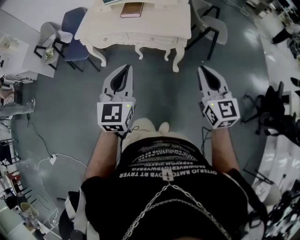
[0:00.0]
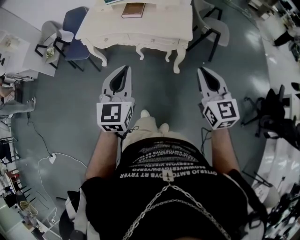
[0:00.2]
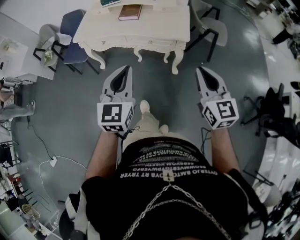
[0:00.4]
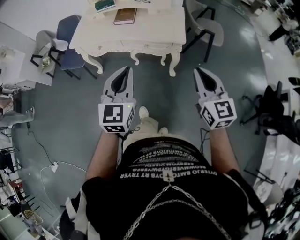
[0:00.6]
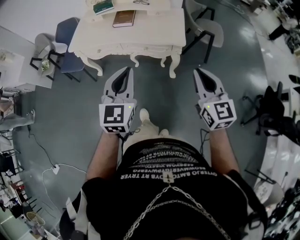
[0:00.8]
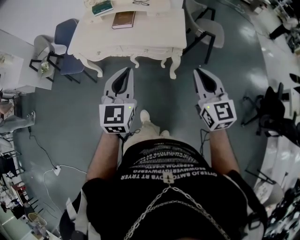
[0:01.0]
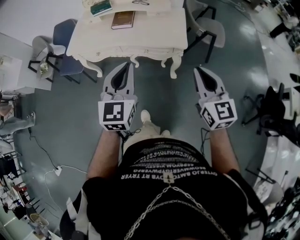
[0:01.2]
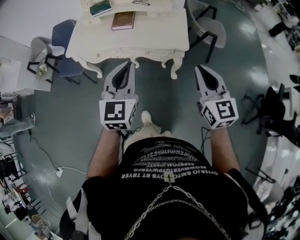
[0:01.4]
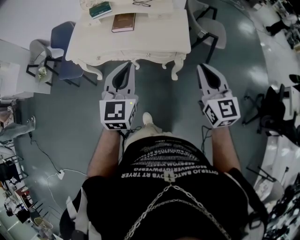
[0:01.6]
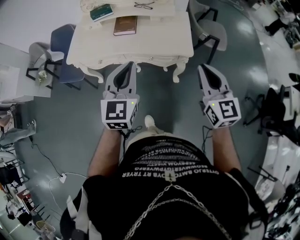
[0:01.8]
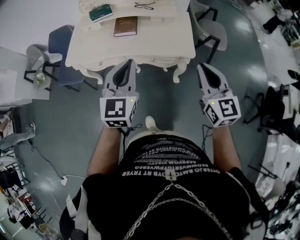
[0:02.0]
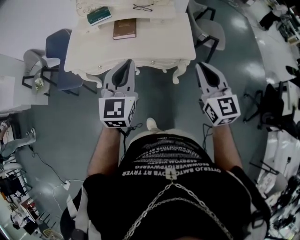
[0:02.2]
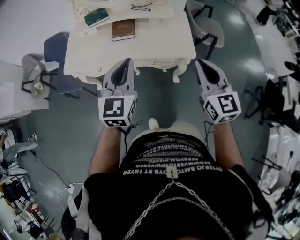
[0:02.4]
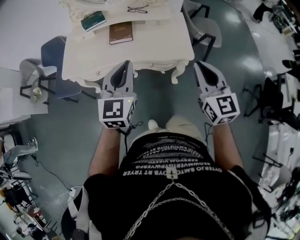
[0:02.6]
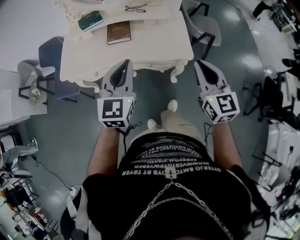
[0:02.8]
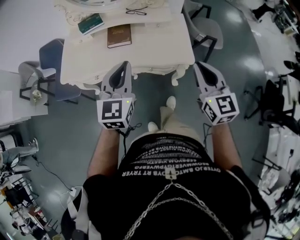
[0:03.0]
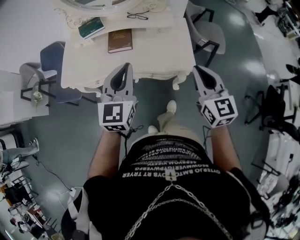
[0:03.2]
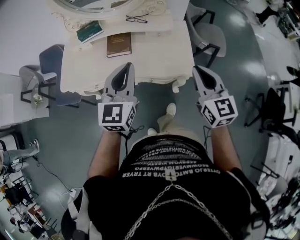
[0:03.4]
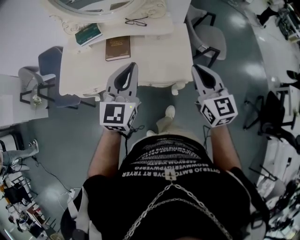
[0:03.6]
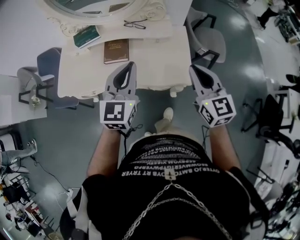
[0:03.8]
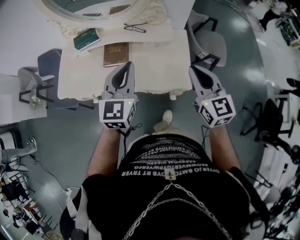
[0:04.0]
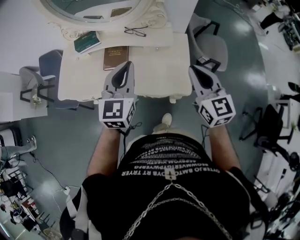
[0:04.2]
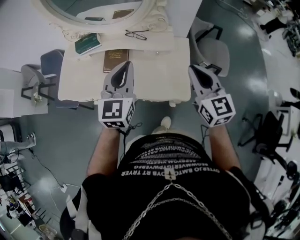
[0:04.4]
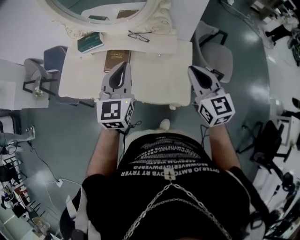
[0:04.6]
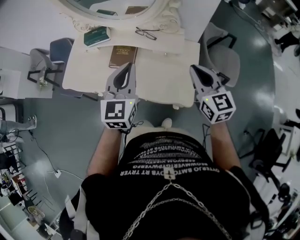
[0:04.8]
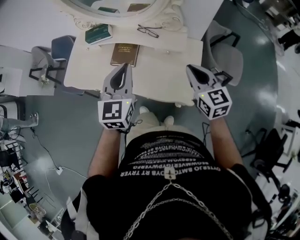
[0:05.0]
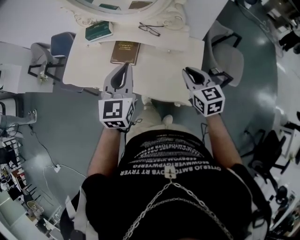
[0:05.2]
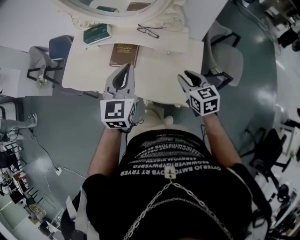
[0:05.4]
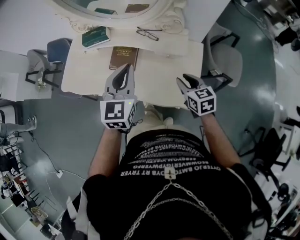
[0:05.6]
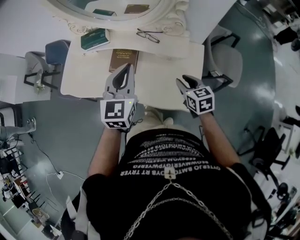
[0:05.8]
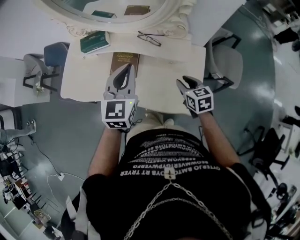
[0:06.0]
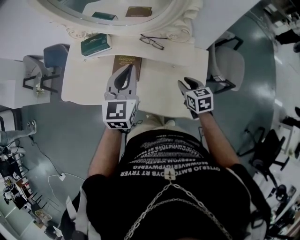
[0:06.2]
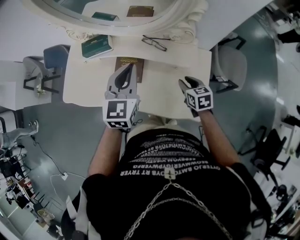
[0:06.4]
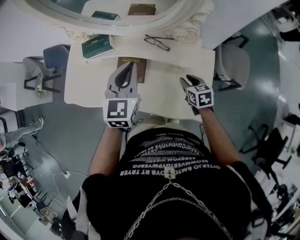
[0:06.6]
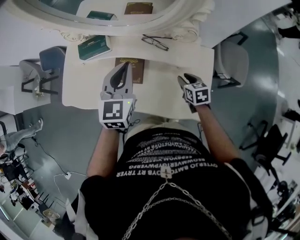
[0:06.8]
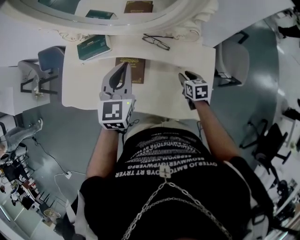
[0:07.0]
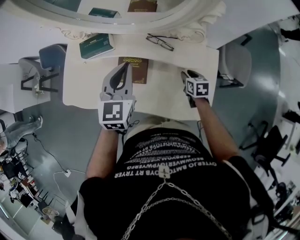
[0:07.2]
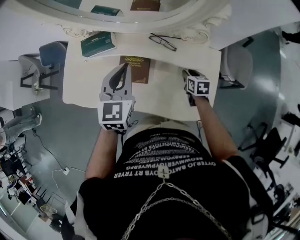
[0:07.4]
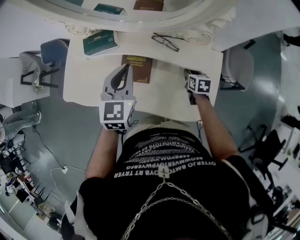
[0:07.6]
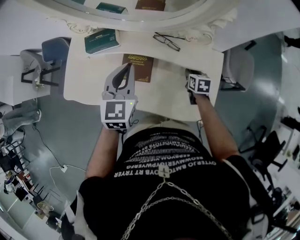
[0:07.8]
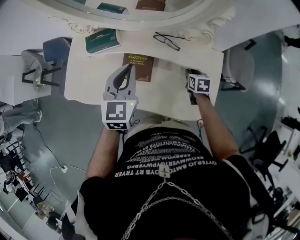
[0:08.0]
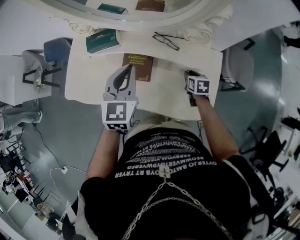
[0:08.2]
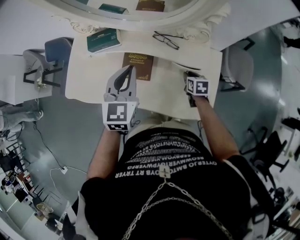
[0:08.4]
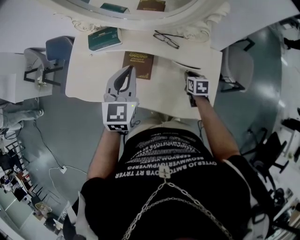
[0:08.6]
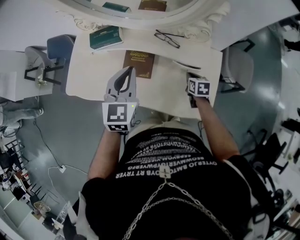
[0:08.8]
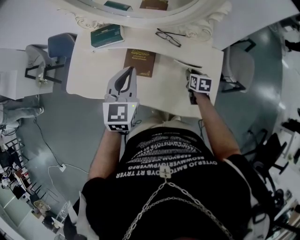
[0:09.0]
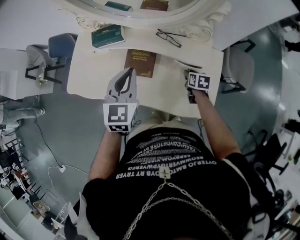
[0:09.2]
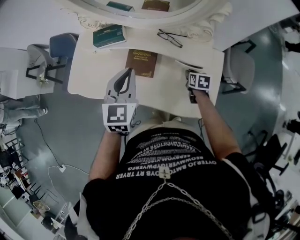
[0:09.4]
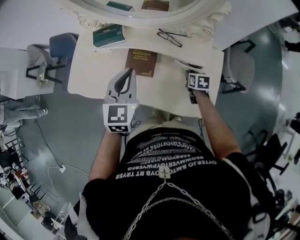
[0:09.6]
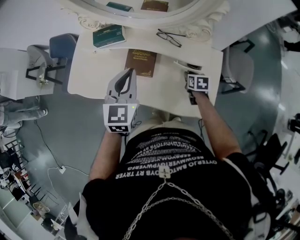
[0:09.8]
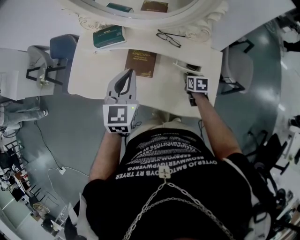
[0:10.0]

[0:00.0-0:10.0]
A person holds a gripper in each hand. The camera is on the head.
0:00.0 to 0:01.4: Both grippers move forward, about 15 cm.
0:01.4 to 0:02.8: Both grippers move forward and to the left, approximately 15 cm.
0:02.8 to 0:04.2: Both grippers travel together forward, about 20 cm.
0:04.2 to 0:05.8: The left gripper heads forward, covering roughly 10 cm; the right gripper goes approximately 25 cm downward and forward, rotates roughly 30 degrees, and opens its fingers.
0:05.8 to 0:07.2: The left gripper travels forward and to the left by roughly 15 cm. The right gripper travels downward and forward by some 20 cm, and turns by some 20 degrees.
0:07.2 to 0:08.6: There are only small adjustments of the grippers.
0:08.6 to 0:10.0: The grippers move only a little.

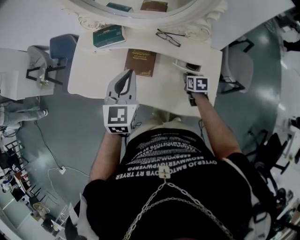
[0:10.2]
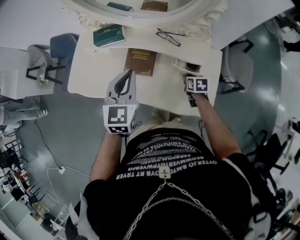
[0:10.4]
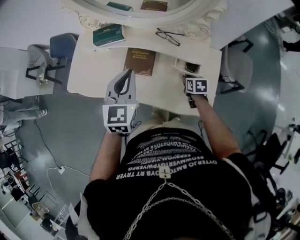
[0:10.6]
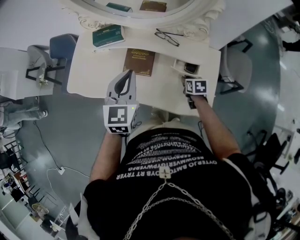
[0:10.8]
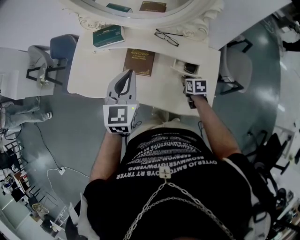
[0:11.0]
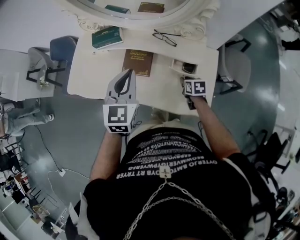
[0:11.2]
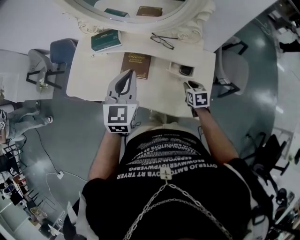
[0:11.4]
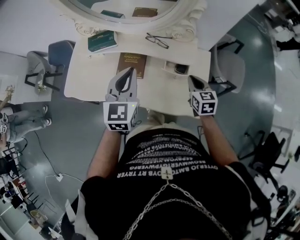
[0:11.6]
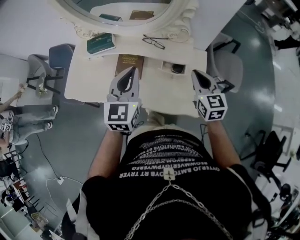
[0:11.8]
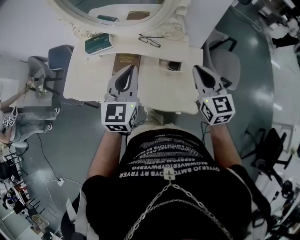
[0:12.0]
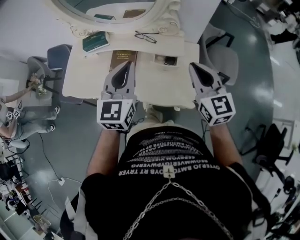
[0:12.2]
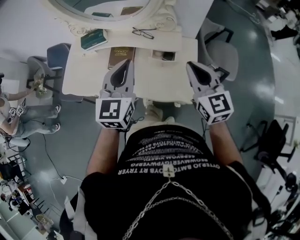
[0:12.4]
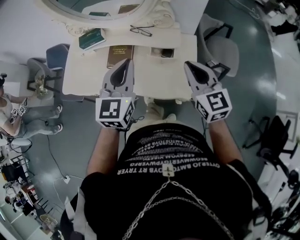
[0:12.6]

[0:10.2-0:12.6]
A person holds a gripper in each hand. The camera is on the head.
0:10.2 to 0:11.4: The right gripper shifts some 10 cm backward and upward.
0:11.4 to 0:12.6: The right gripper is displaced upward by about 30 cm, and tilts its fingers approximately 40 degrees upward. The left gripper shifts some 15 cm to the right, backward and upward.

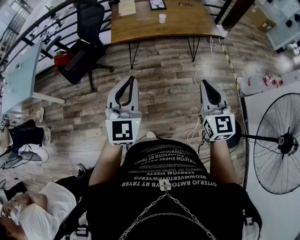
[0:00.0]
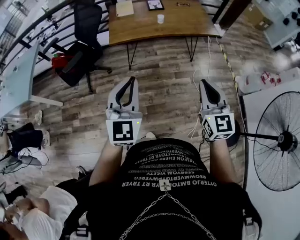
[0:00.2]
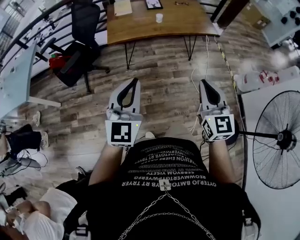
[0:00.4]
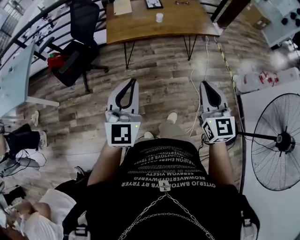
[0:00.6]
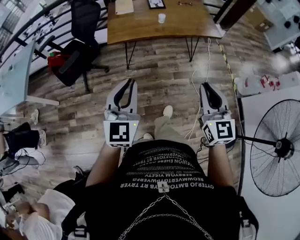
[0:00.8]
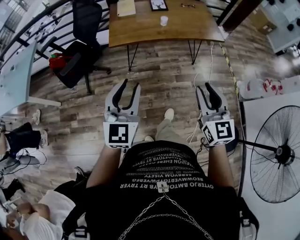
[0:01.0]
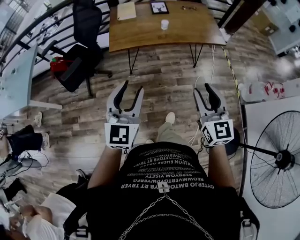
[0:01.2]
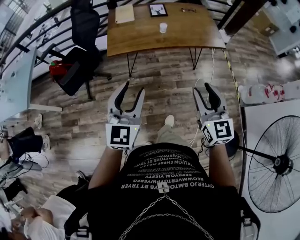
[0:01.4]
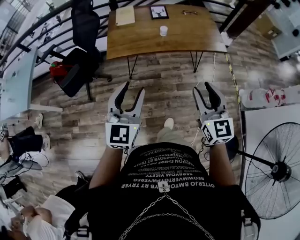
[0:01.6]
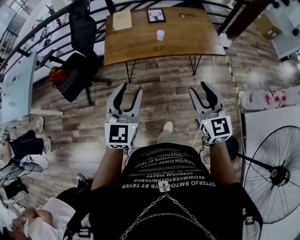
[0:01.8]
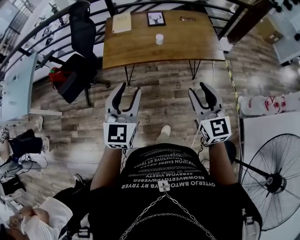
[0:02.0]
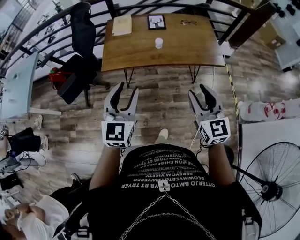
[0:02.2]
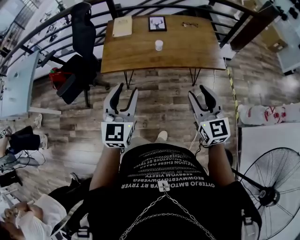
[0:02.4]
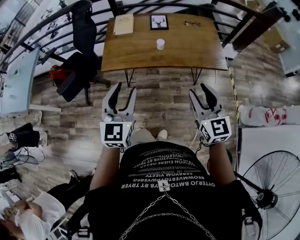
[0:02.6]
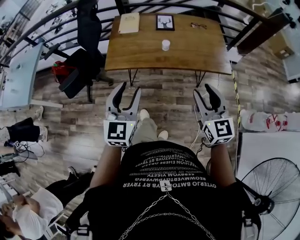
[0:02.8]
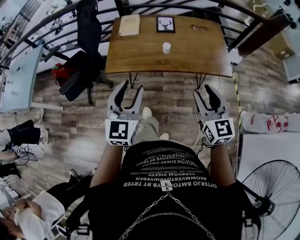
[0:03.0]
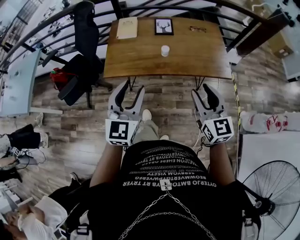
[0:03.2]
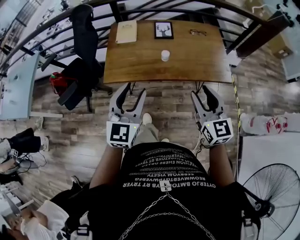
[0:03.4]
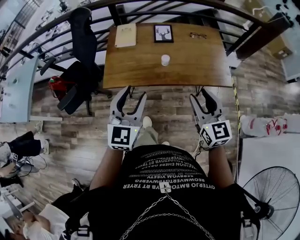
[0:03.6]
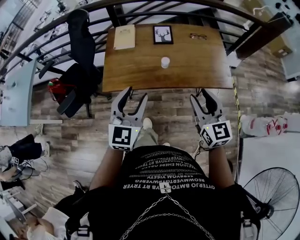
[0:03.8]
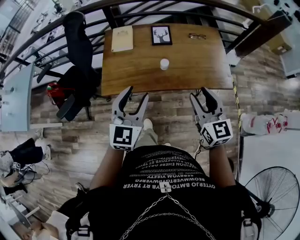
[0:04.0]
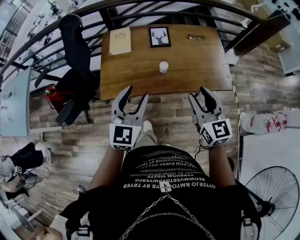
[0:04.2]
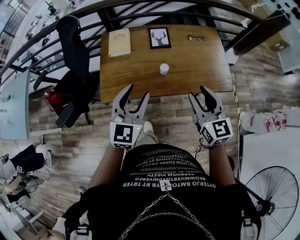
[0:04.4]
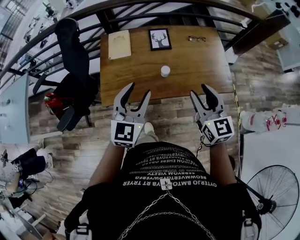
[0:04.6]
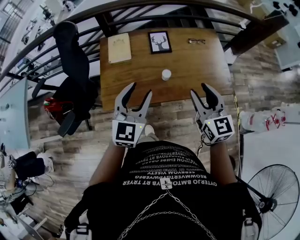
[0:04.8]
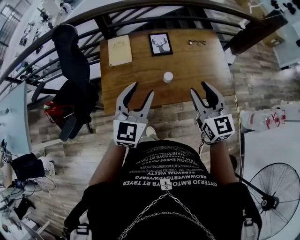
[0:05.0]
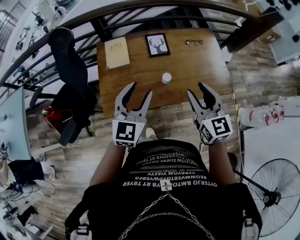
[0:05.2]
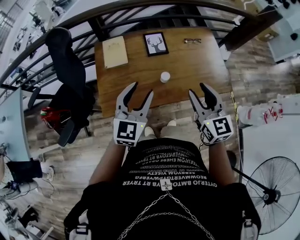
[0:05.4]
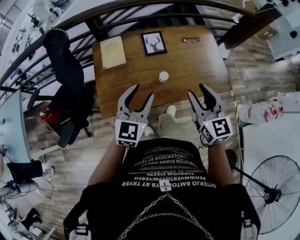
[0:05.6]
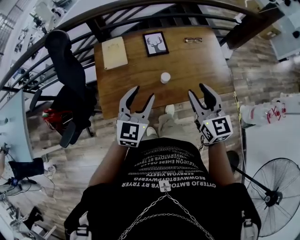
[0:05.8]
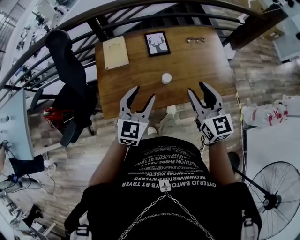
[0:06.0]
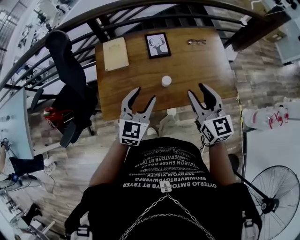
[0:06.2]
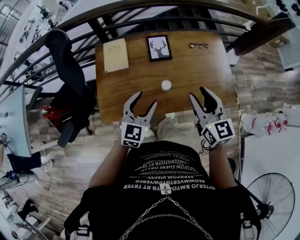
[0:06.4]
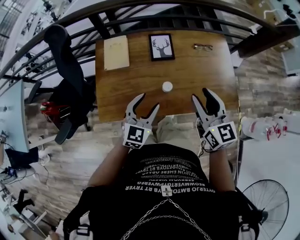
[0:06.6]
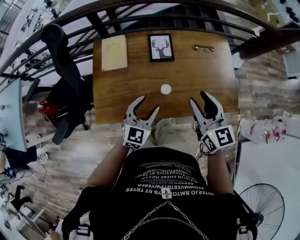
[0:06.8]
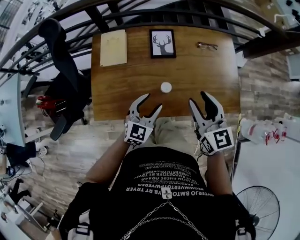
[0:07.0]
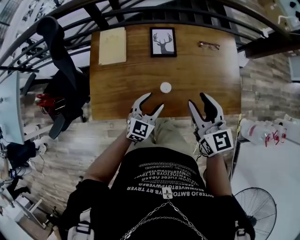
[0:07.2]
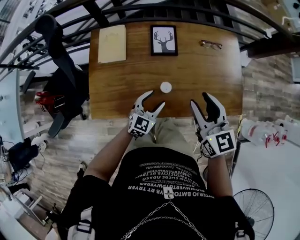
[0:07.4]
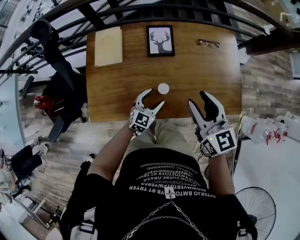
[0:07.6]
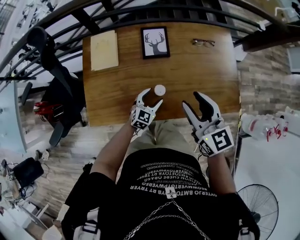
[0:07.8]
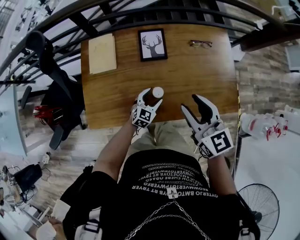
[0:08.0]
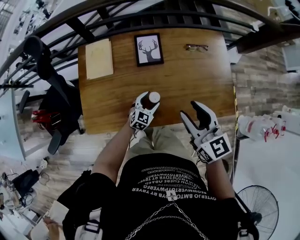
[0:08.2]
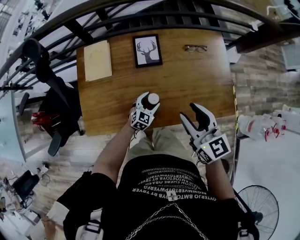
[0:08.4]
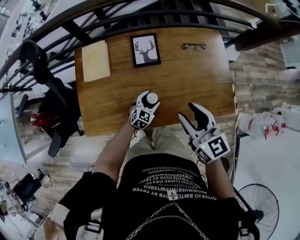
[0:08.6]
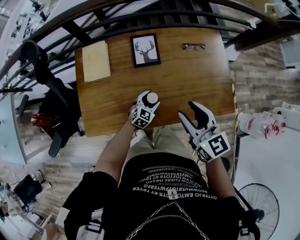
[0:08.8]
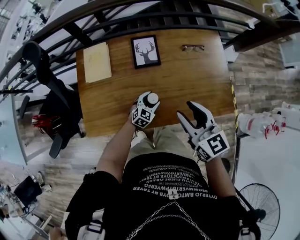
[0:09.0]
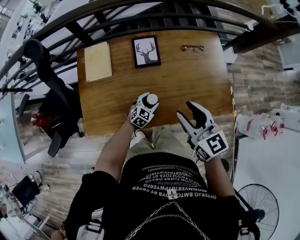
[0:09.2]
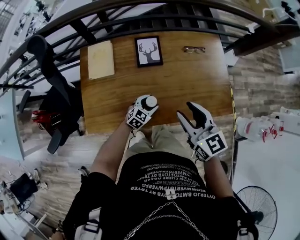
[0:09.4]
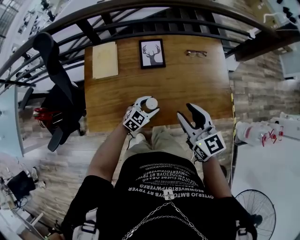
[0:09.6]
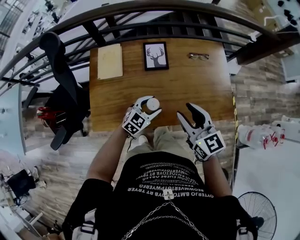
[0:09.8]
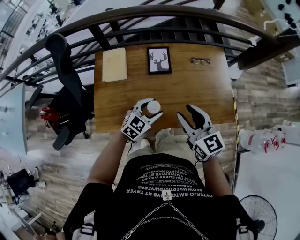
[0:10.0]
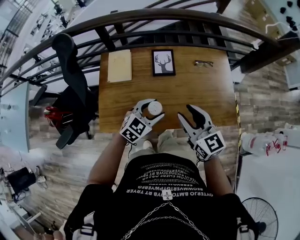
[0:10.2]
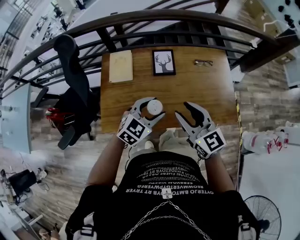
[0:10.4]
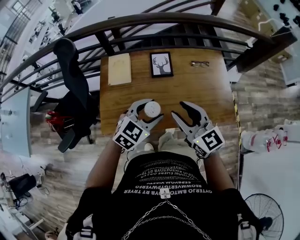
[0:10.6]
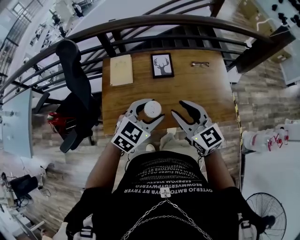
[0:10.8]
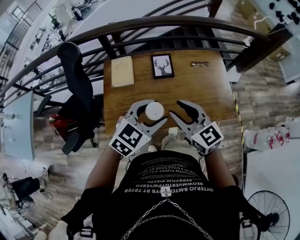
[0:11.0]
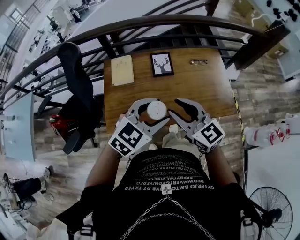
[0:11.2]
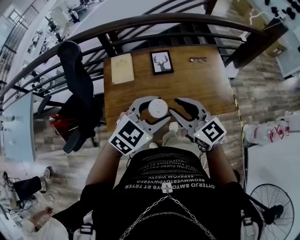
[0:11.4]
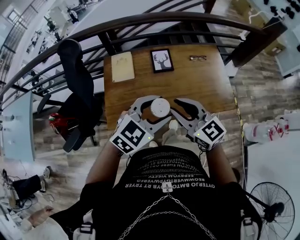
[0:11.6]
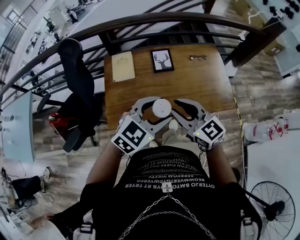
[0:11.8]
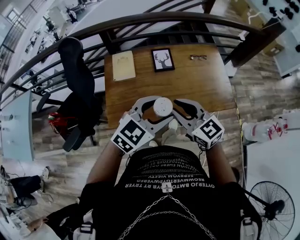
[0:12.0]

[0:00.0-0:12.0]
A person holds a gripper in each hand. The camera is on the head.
0:00.0 to 0:01.6: The grippers both shift forward by about 15 cm. The left gripper opens its fingers. Meanwhile the right gripper opens its fingers.
0:01.6 to 0:03.0: Both grippers travel together forward and to the right, roughly 15 cm.
0:03.0 to 0:04.4: The grippers both shift forward by some 20 cm.
0:04.4 to 0:06.0: The right gripper is displaced forward by about 10 cm, while the left gripper goes about 10 cm forward and downward.
0:06.0 to 0:07.6: The right gripper moves forward and downward, some 15 cm, while the left gripper is displaced downward by about 25 cm.
0:07.6 to 0:09.0: The left gripper travels downward by about 5 cm.
0:09.0 to 0:10.4: The left gripper travels upward by approximately 30 cm. Meanwhile the right gripper heads to the left and upward, covering approximately 10 cm.
0:10.4 to 0:12.0: The left gripper is displaced upward and backward by approximately 15 cm. The right gripper moves backward and to the left, roughly 10 cm.
